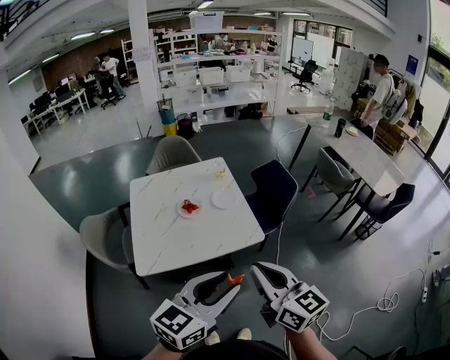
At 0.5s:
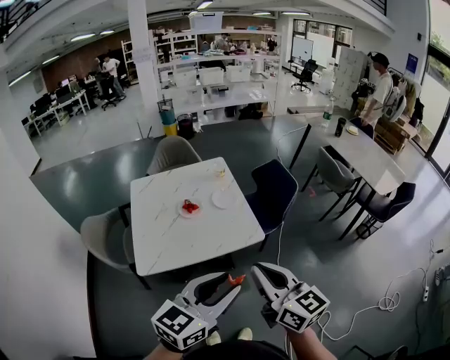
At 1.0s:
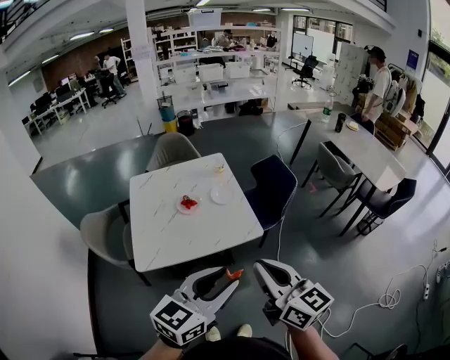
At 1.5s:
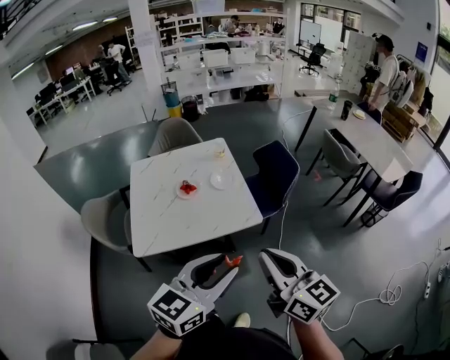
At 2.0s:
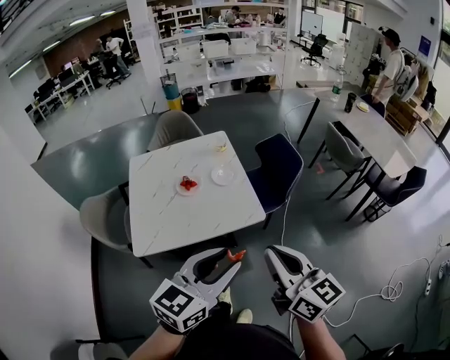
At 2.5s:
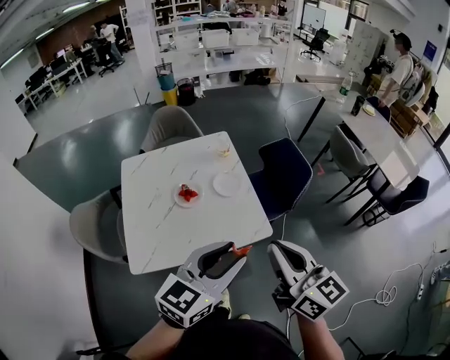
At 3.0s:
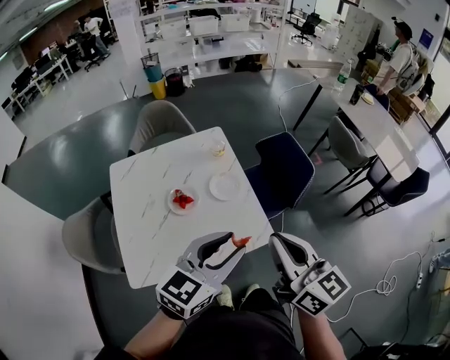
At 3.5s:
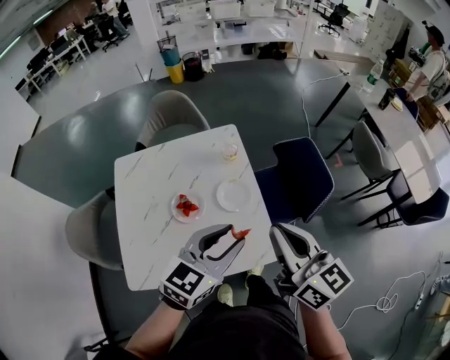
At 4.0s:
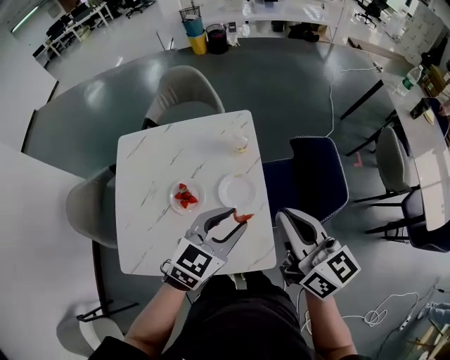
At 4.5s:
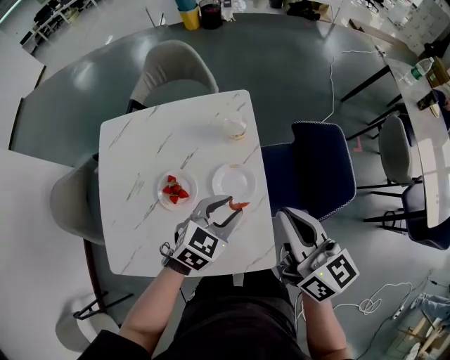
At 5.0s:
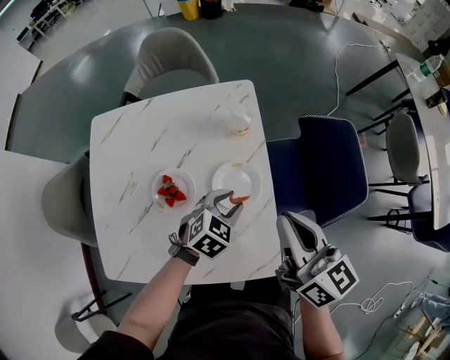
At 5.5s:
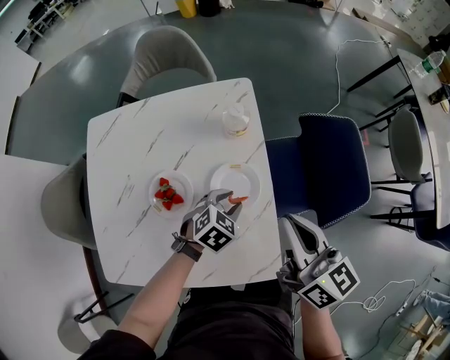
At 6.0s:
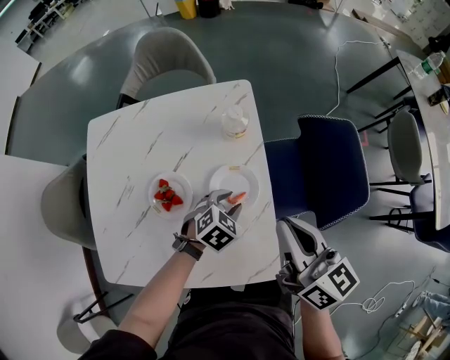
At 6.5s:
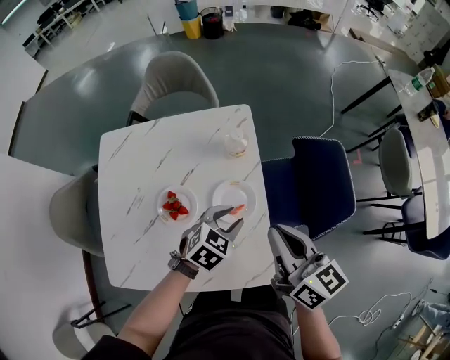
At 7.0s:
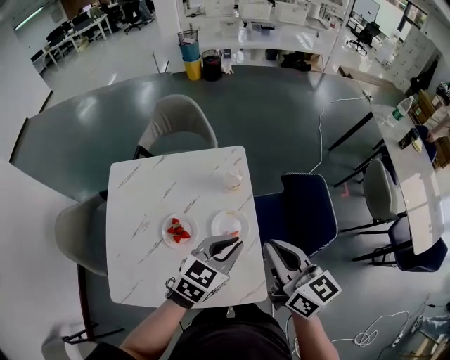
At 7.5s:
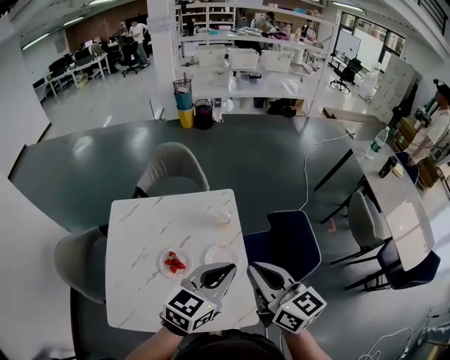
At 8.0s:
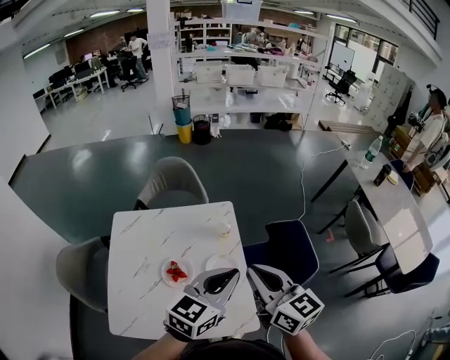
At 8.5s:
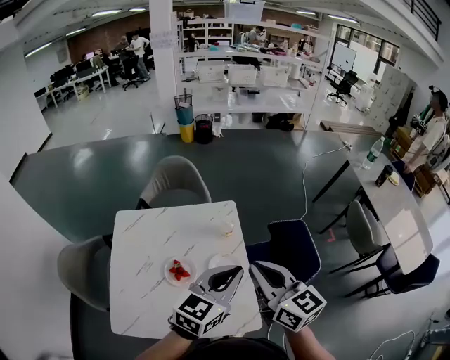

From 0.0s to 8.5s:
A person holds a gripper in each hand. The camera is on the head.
From 0.0s to 2.0s: The right gripper moves to the right, approximately 5 cm, while the left gripper moves approximately 5 cm.
From 2.0s to 4.0s: Both grippers are carried forward, roughly 40 cm.
From 4.0s to 6.5s: The right gripper shifts roughly 10 cm downward. Meanwhile the left gripper travels downward by approximately 20 cm, and swivels approximately 20 degrees.
From 6.5s to 8.5s: The right gripper moves upward, approximately 15 cm. The left gripper heads upward, covering about 30 cm, tilts its fingers roughly 40 degrees upward, and closes up.

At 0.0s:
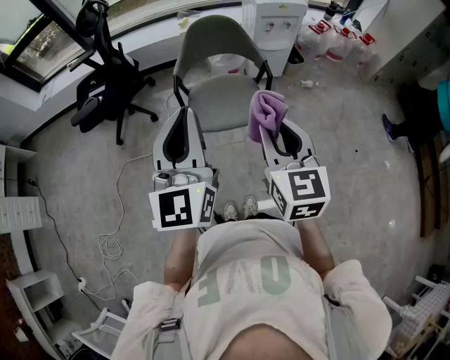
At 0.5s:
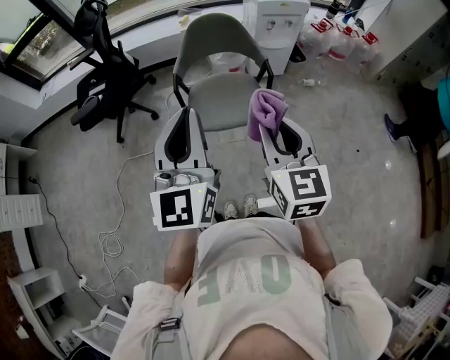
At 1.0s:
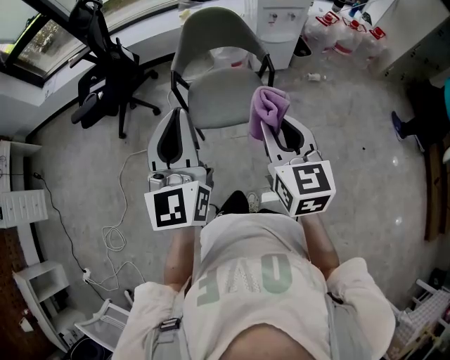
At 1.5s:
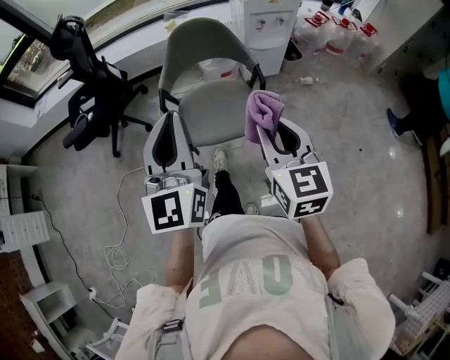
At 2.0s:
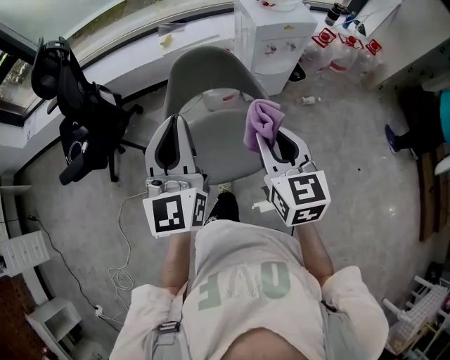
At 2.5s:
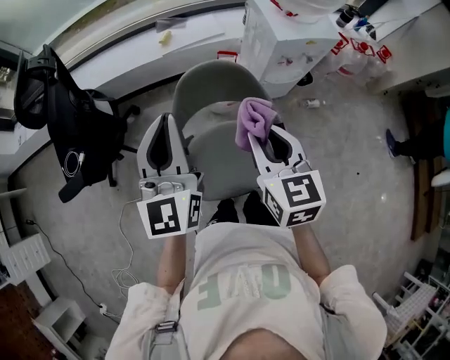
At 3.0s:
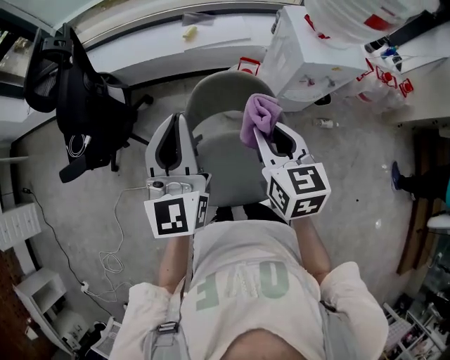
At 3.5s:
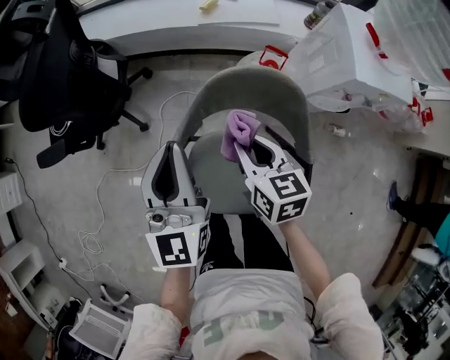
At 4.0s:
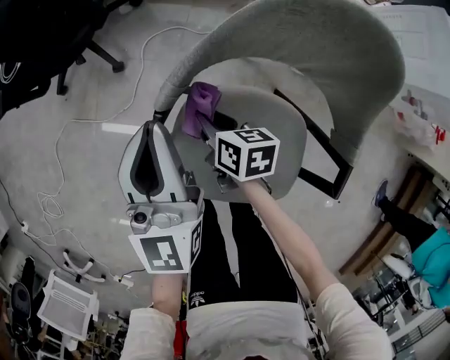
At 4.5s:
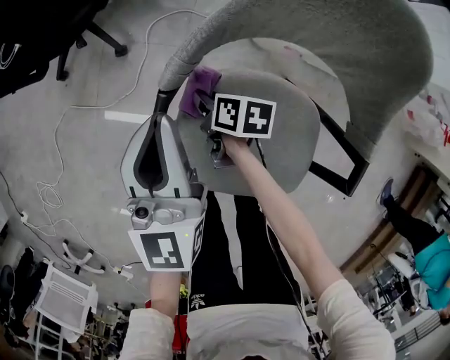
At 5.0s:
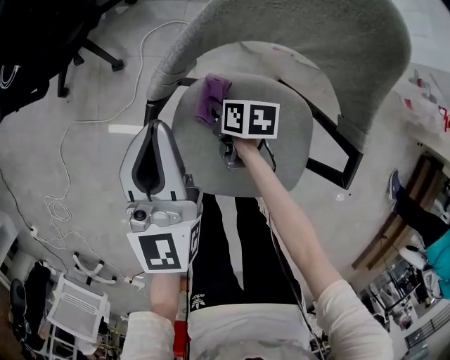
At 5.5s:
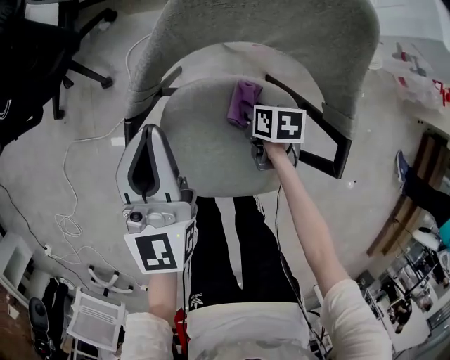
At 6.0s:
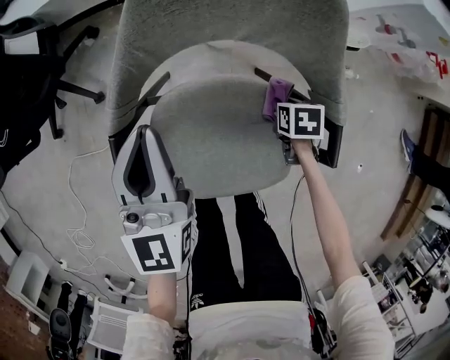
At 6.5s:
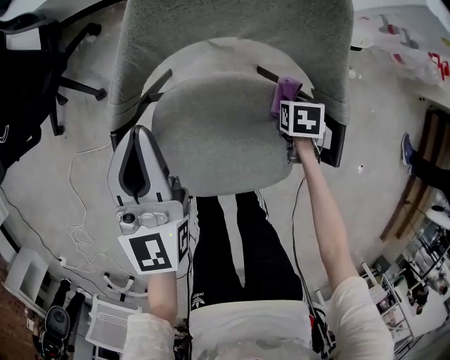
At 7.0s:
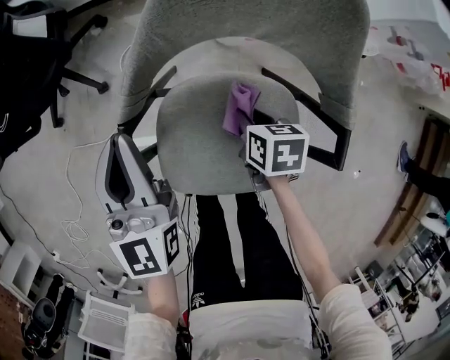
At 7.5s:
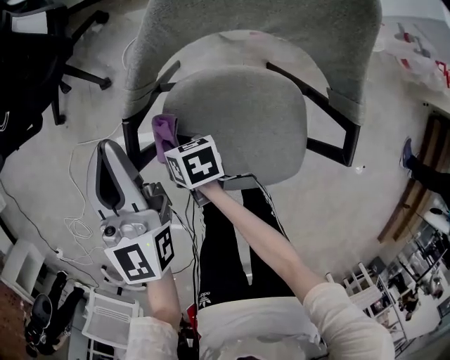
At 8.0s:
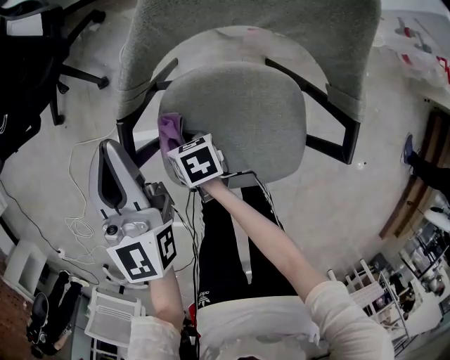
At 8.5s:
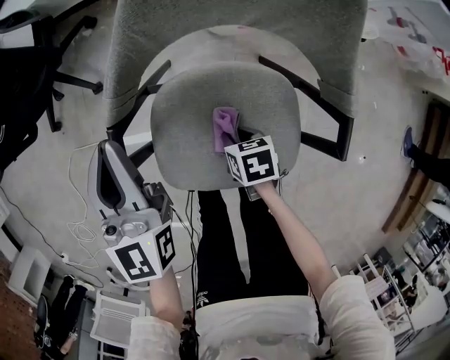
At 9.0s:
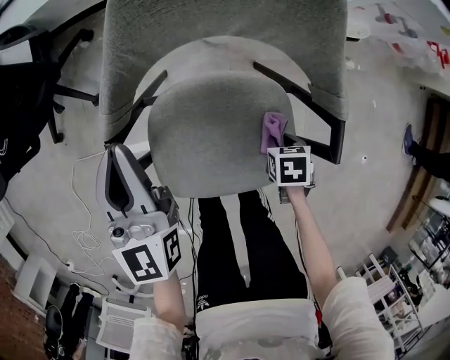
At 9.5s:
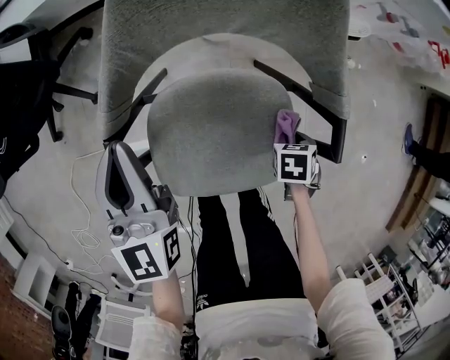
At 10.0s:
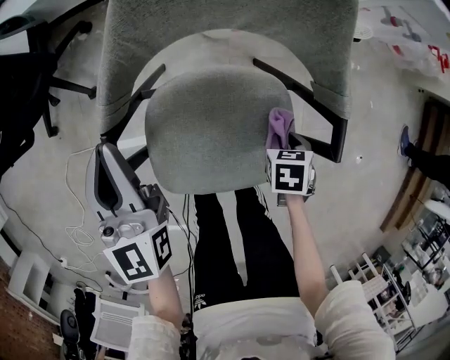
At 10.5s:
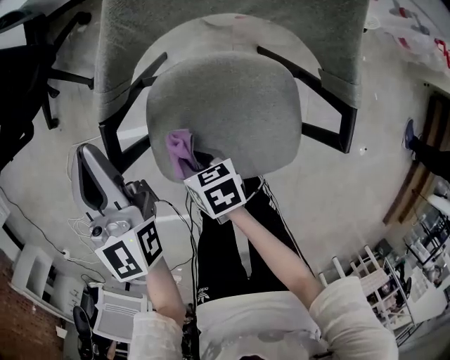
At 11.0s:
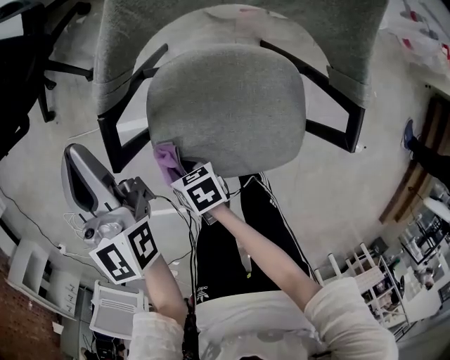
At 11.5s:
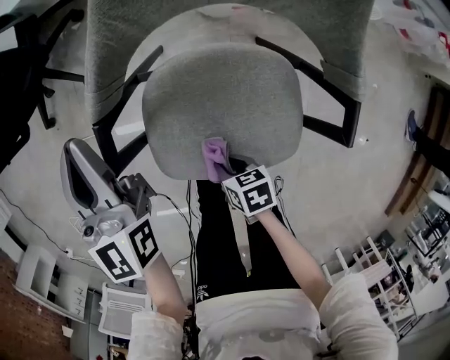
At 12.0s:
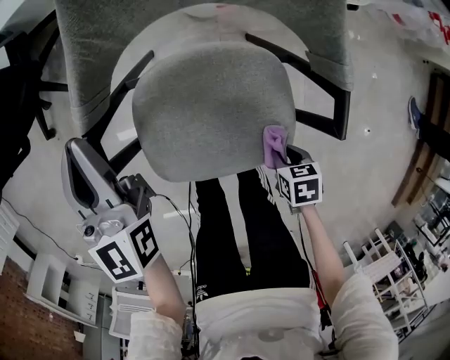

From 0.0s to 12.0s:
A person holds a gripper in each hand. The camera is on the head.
From 0.0s to 2.0s: The two grippers go some 30 cm forward.
From 2.0s to 4.0s: The two grippers go about 40 cm downward. The left gripper swivels roughly 30 degrees; the right gripper turns by about 60 degrees.
From 4.0s to 6.0s: The right gripper moves roughly 30 cm, and tips its fingers downward by some 30 degrees. The left gripper shifts by approximately 10 cm.
From 6.0s to 8.0s: The left gripper changes place by roughly 10 cm; the right gripper ends up roughly 35 cm from where it was, and turns by about 30 degrees.
From 8.0s to 10.0s: The right gripper moves some 30 cm, and rotates approximately 40 degrees.

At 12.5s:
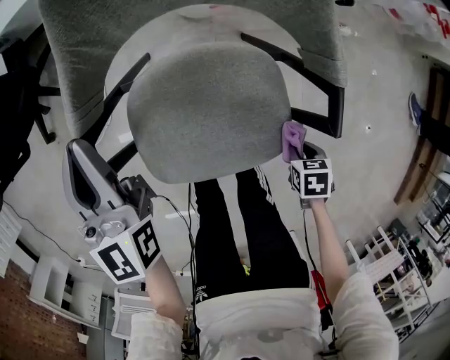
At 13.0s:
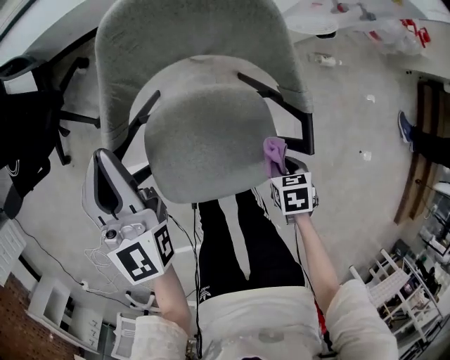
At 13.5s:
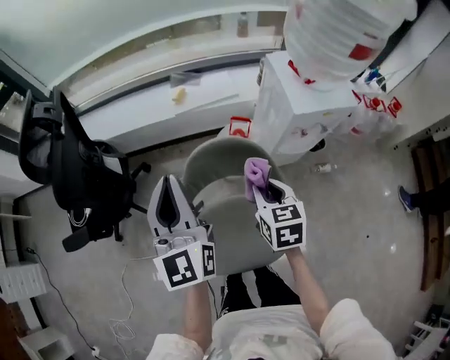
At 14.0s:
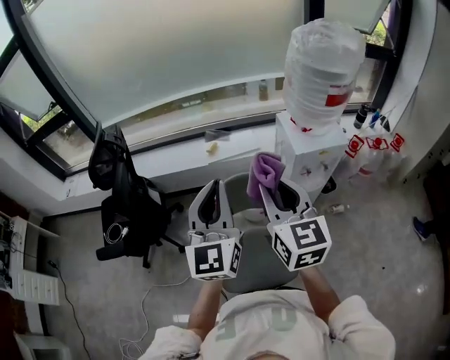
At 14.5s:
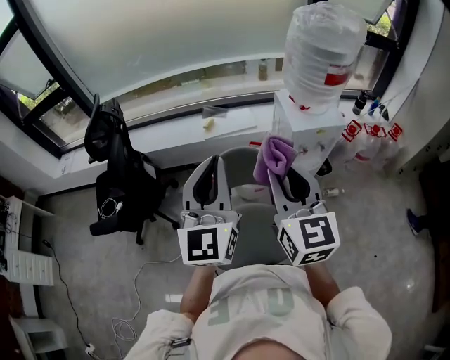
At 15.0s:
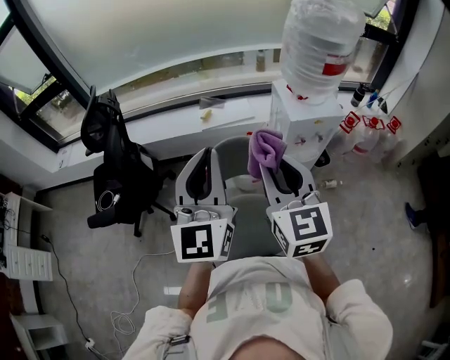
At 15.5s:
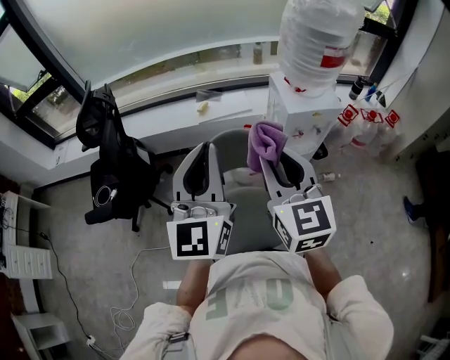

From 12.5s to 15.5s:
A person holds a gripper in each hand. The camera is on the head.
From 12.5s to 14.0s: The left gripper moves upward, roughly 40 cm, and rotates some 30 degrees. The right gripper shifts roughly 70 cm upward, and tilts its fingers approximately 90 degrees upward.
From 14.0s to 15.5s: The grippers both shift backward by some 5 cm.

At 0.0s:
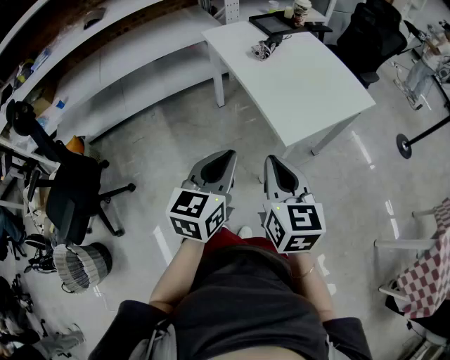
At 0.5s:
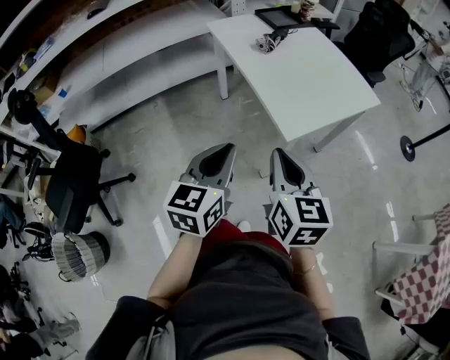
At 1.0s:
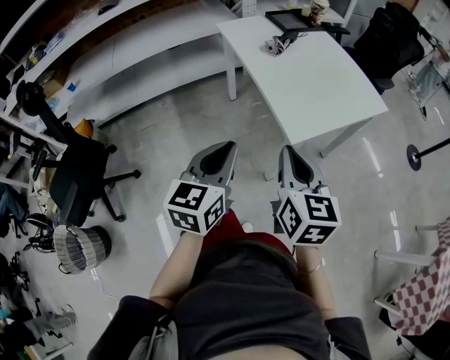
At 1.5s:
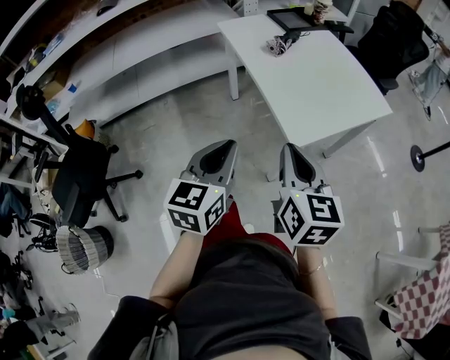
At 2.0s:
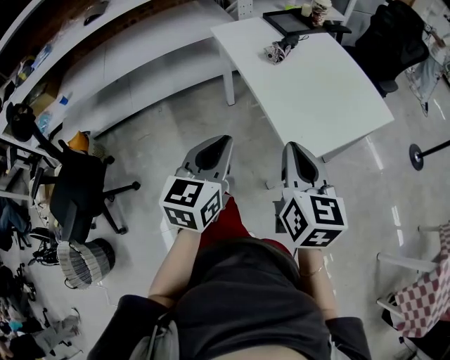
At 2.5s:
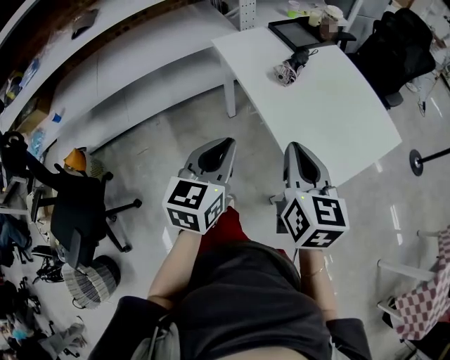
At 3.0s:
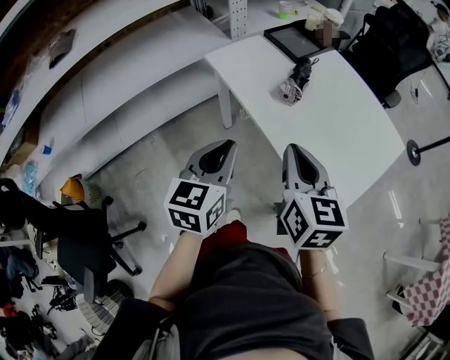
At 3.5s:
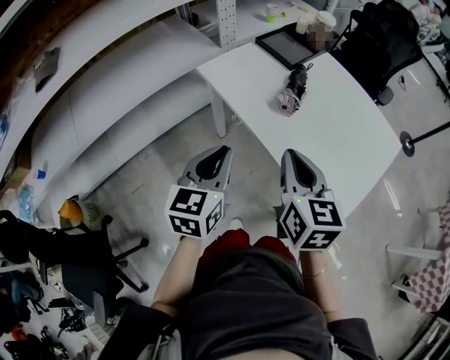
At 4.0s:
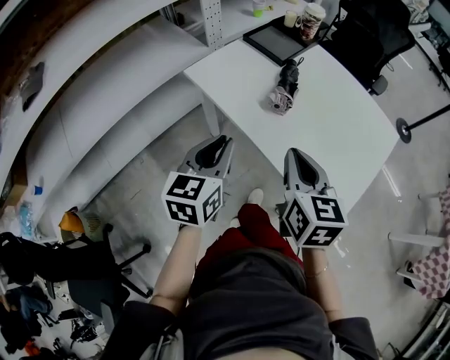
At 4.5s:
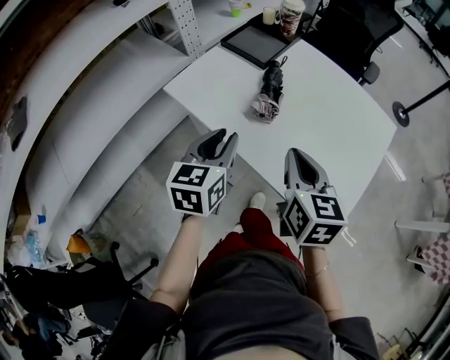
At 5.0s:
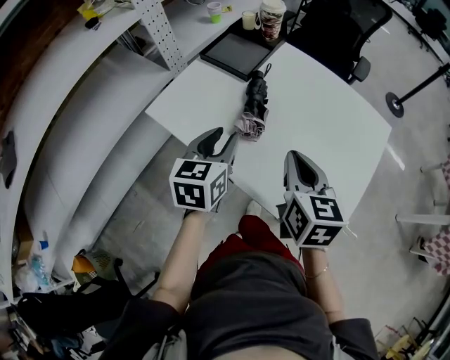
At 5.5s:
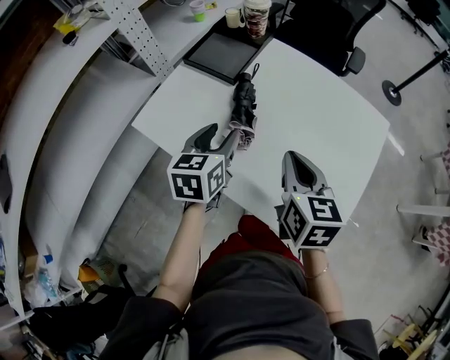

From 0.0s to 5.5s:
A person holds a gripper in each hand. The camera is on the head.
From 0.0s to 2.0s: Both grippers travel together forward, roughly 10 cm.
From 2.0s to 3.5s: The grippers both shift forward and to the left by some 30 cm.
From 3.5s to 5.5s: The left gripper shifts roughly 25 cm forward, turns by approximately 20 degrees, and opens up. Meanwhile the right gripper travels forward and to the right by roughly 20 cm, and swivels some 20 degrees.
